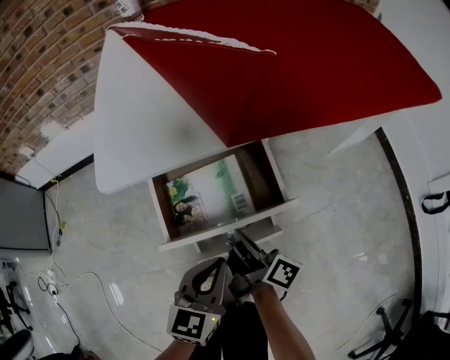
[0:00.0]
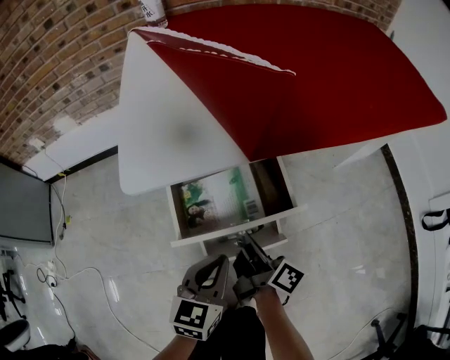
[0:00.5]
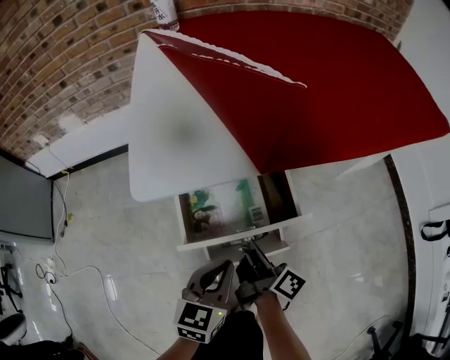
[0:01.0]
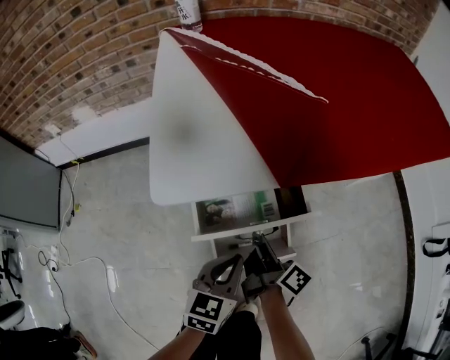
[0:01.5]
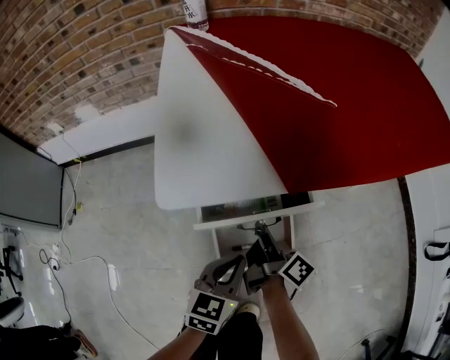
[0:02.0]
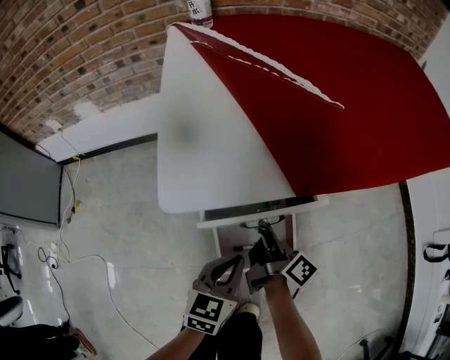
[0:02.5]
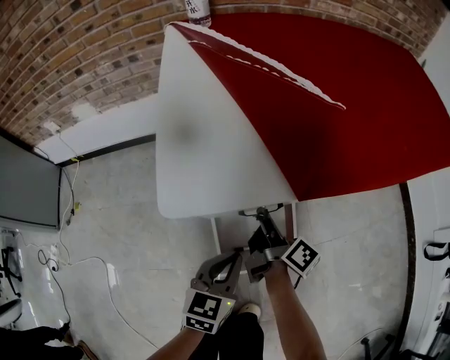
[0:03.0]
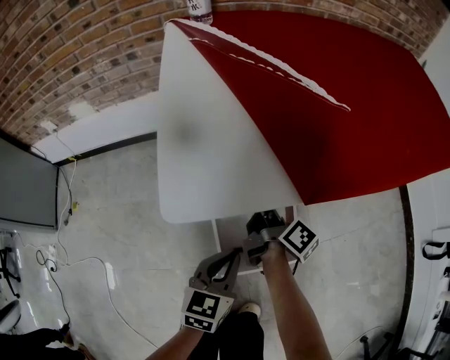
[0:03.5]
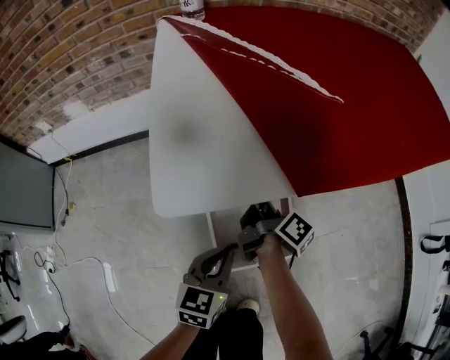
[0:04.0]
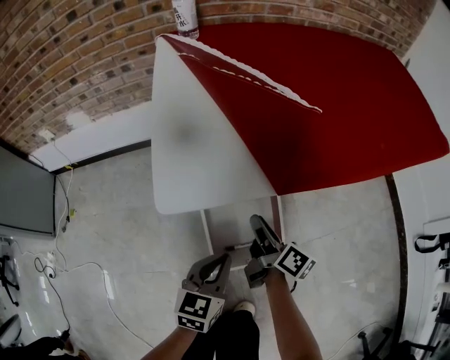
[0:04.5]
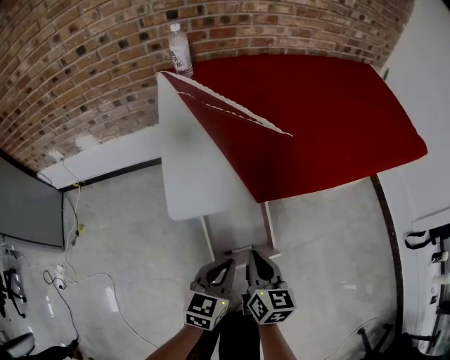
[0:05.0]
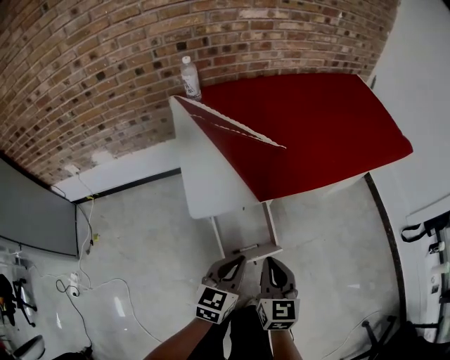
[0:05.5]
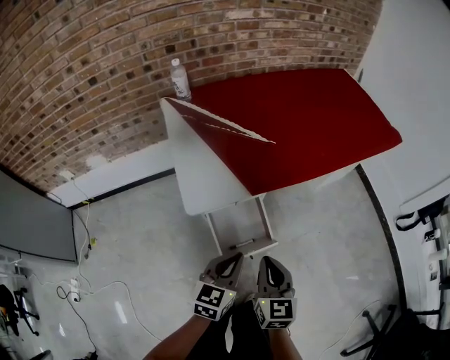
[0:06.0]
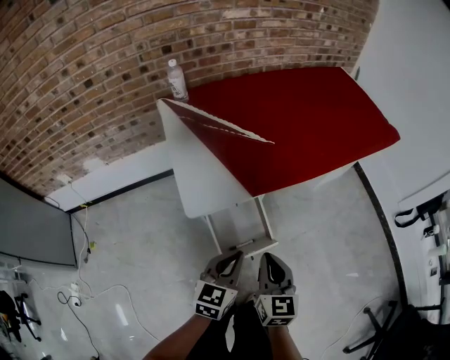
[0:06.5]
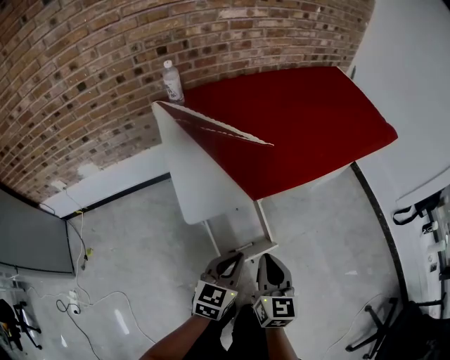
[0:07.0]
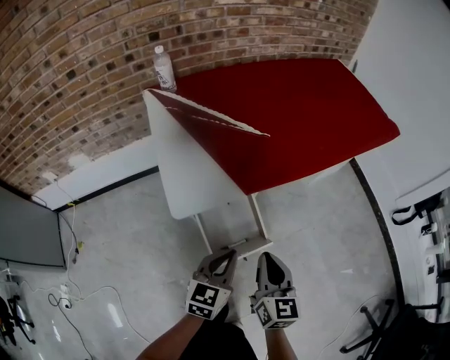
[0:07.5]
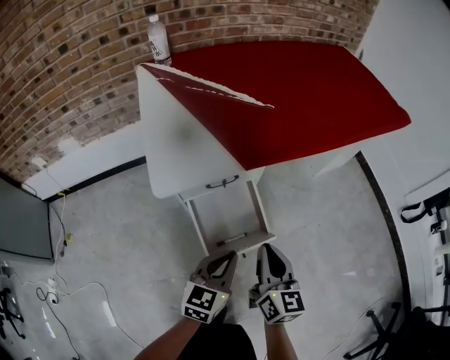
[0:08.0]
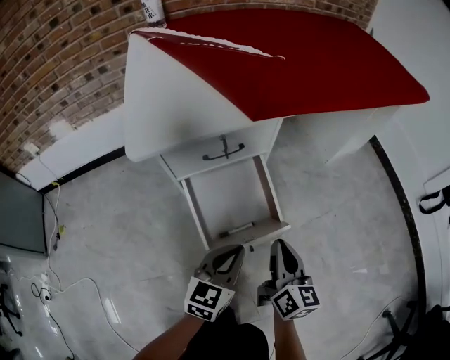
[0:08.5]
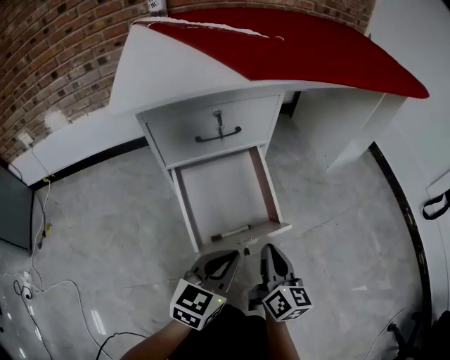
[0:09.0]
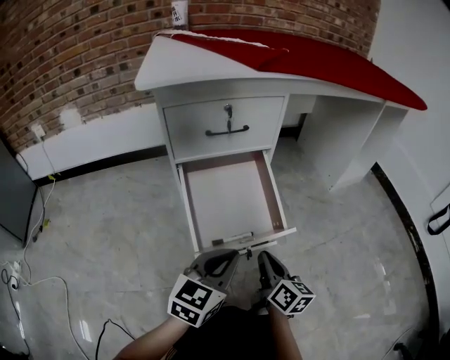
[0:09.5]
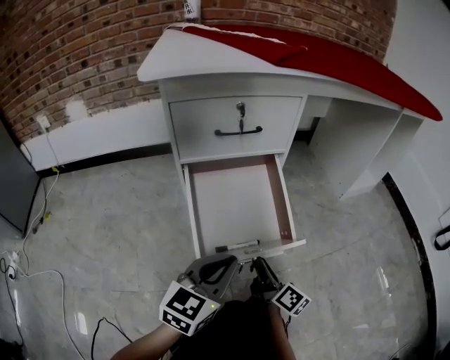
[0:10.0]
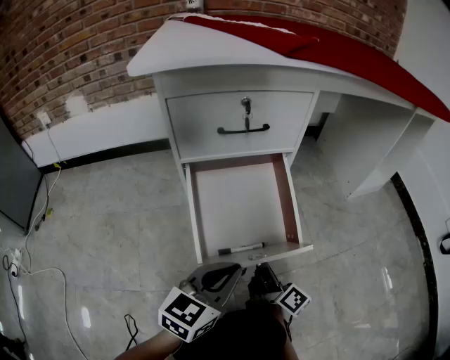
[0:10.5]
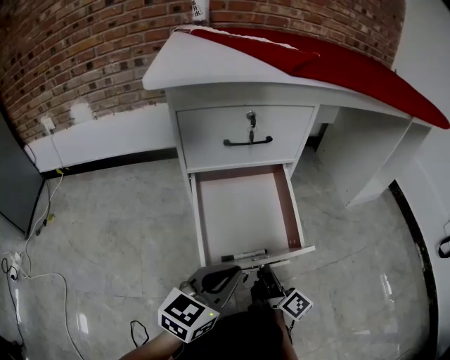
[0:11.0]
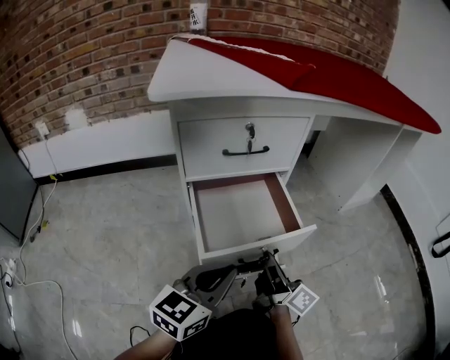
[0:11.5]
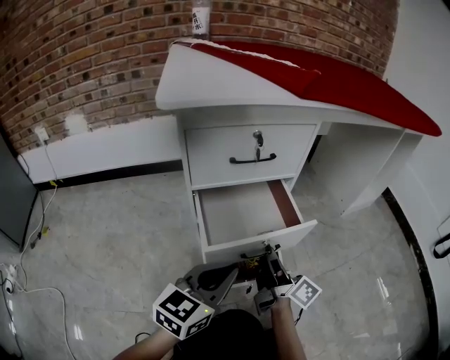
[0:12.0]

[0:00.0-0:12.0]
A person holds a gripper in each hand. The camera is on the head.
0:00.0 to 0:02.0: The left gripper ends up roughly 5 cm from where it was. The right gripper shifts about 5 cm forward.
0:02.0 to 0:04.0: The right gripper travels forward by about 10 cm.
0:04.0 to 0:06.0: The left gripper is displaced upward by some 25 cm. The right gripper moves upward and backward, about 35 cm, rolls counterclockwise, seen from behind, by some 70 degrees, and opens, then closes once more.
0:06.0 to 0:08.0: The grippers both shift downward by roughly 15 cm.
0:08.0 to 0:10.0: The left gripper goes roughly 25 cm downward; the right gripper goes some 40 cm downward, changes its angle by roughly 40 degrees, and opens.
0:10.0 to 0:12.0: The right gripper moves upward and forward, approximately 10 cm. The left gripper ends up some 5 cm from where it was.

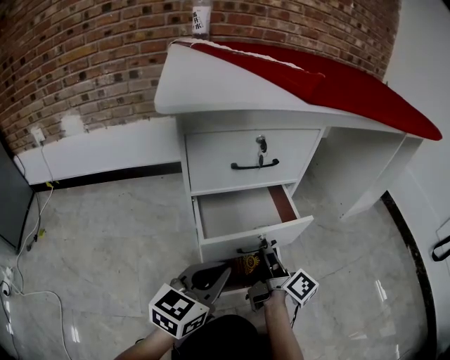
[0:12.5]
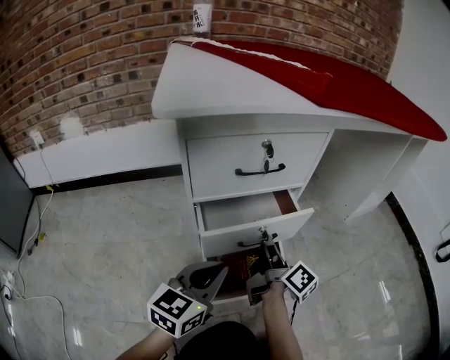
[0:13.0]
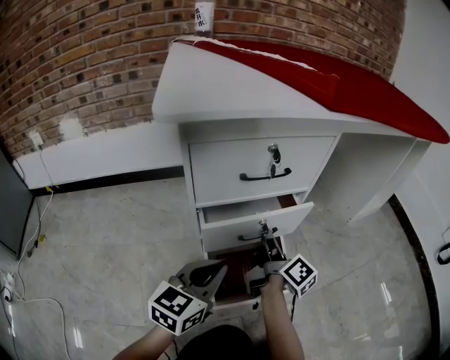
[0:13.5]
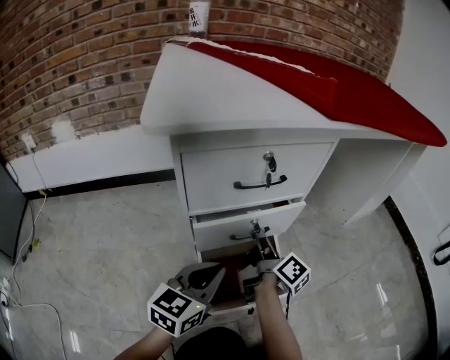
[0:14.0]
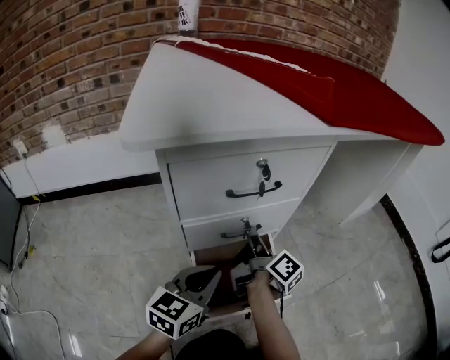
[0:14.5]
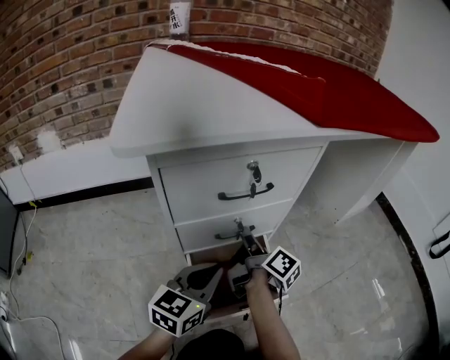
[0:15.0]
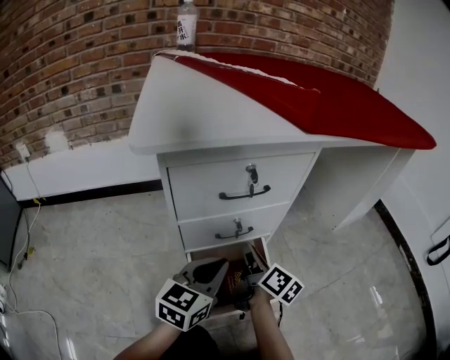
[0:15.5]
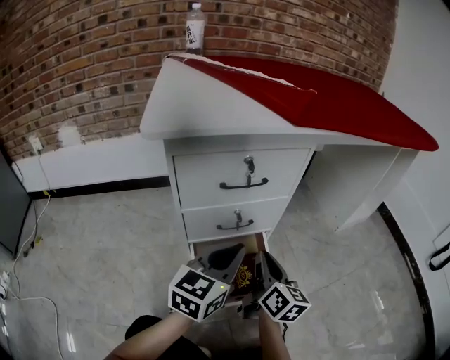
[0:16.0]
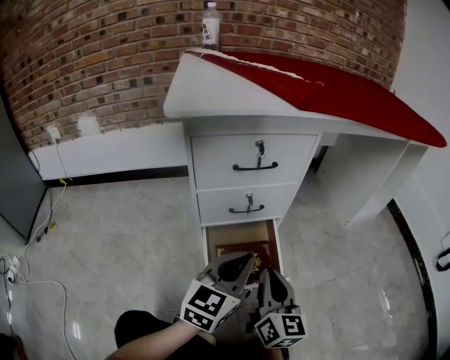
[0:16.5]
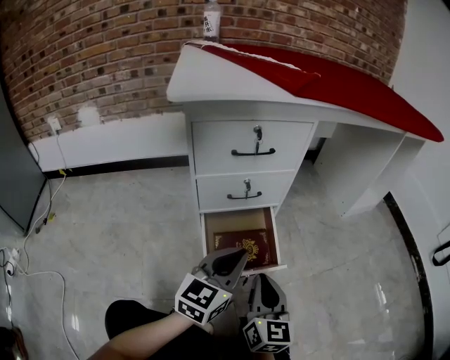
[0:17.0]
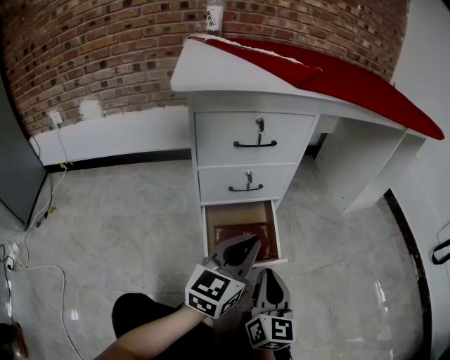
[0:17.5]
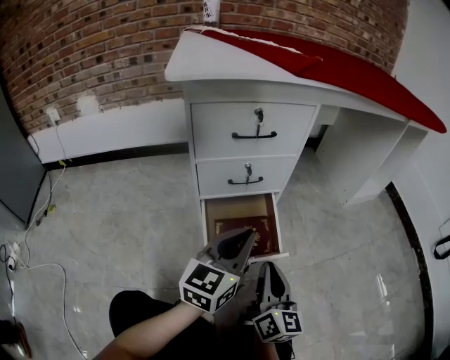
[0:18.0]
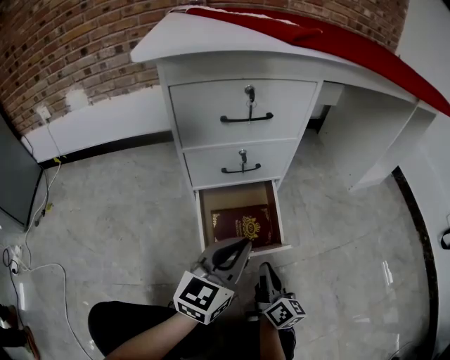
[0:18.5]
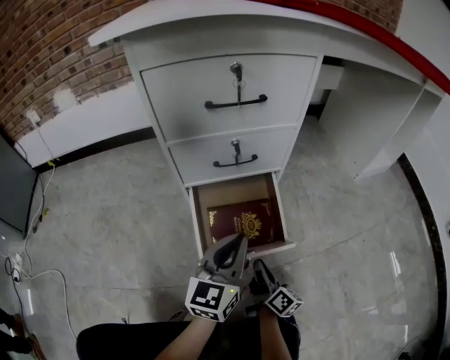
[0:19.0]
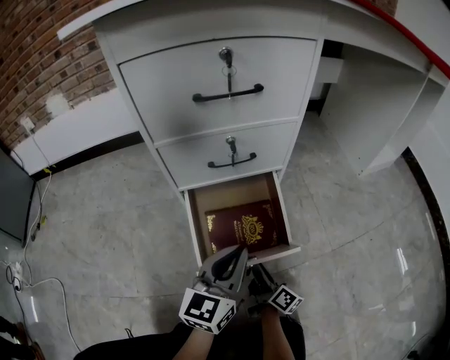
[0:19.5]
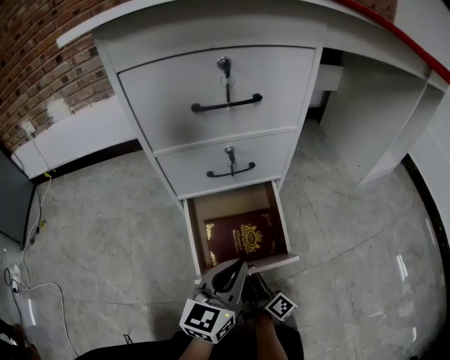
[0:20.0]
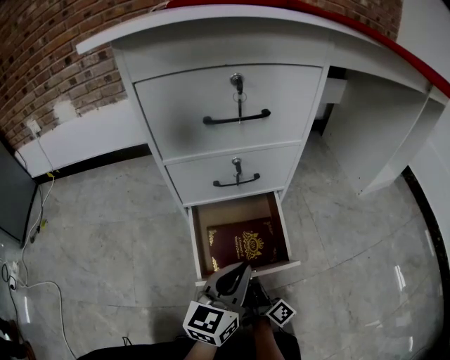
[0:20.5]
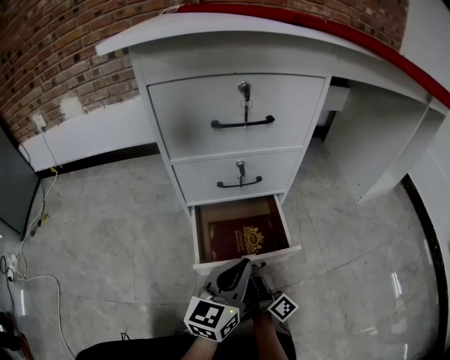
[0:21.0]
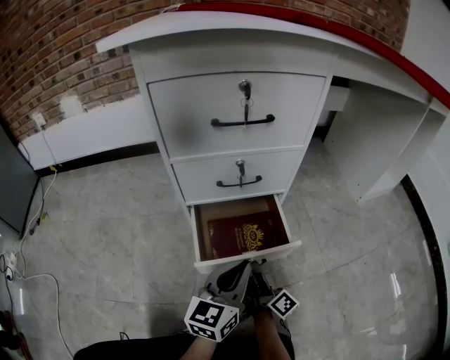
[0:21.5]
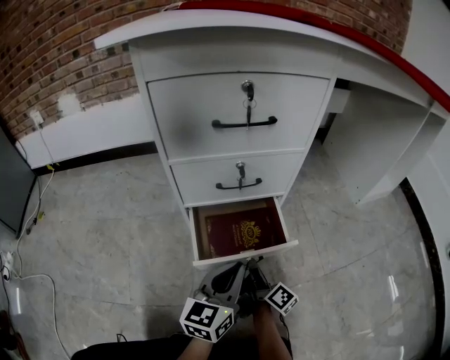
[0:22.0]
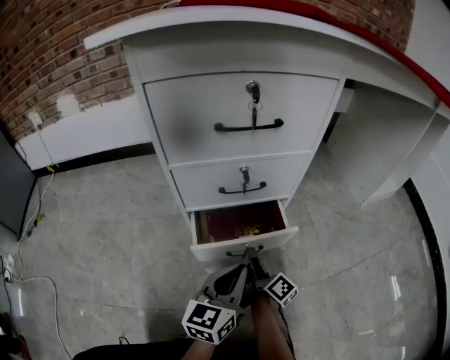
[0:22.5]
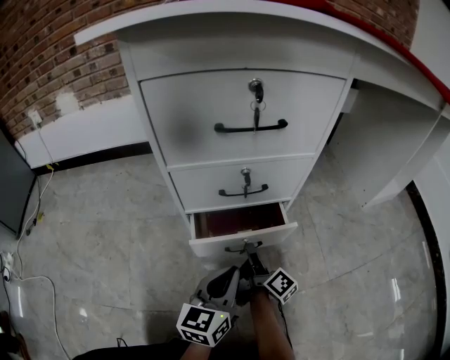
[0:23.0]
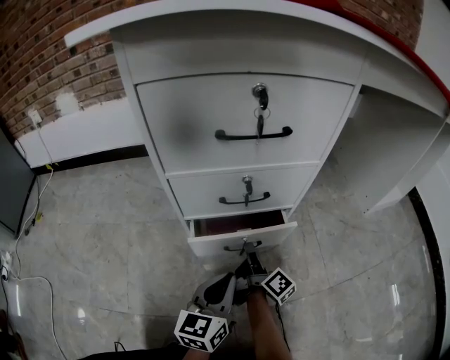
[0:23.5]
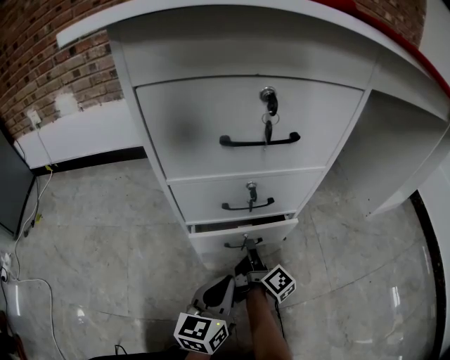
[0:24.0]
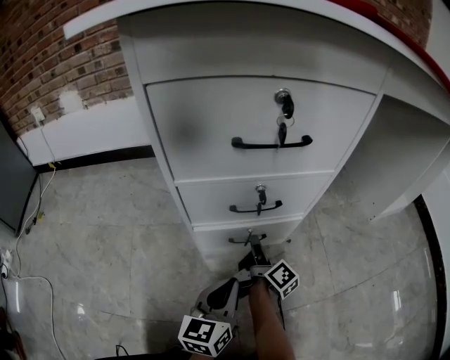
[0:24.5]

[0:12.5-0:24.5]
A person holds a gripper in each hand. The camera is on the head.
0:12.5 to 0:14.5: The right gripper shifts some 15 cm forward and to the left. The left gripper shifts about 10 cm forward.
0:14.5 to 0:16.5: The left gripper shifts approximately 10 cm to the right, upward and backward; the right gripper travels backward by about 20 cm, and rotates around the line of its fingers by roughly 60 degrees, counterclockwise from behind.
0:16.5 to 0:18.5: The right gripper is displaced downward by approximately 15 cm, and swivels roughly 30 degrees; the left gripper ends up about 5 cm from where it was.
0:18.5 to 0:20.5: Both grippers travel together downward, some 10 cm. The right gripper swivels about 30 degrees.
0:20.5 to 0:22.5: The right gripper travels forward by approximately 10 cm.
0:22.5 to 0:24.5: The left gripper moves some 5 cm; the right gripper is displaced forward by some 10 cm.

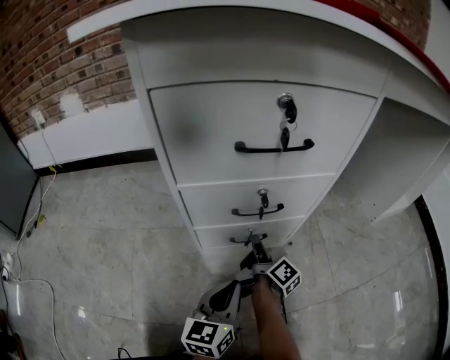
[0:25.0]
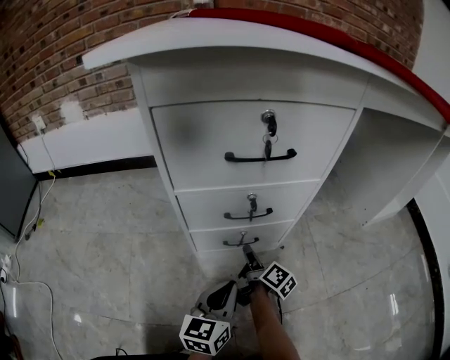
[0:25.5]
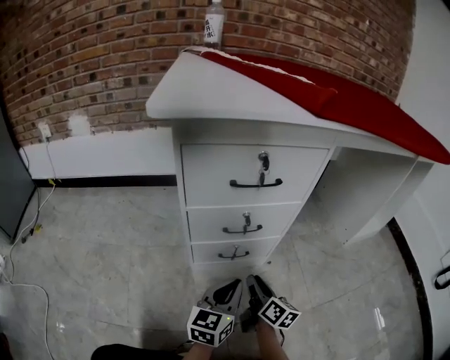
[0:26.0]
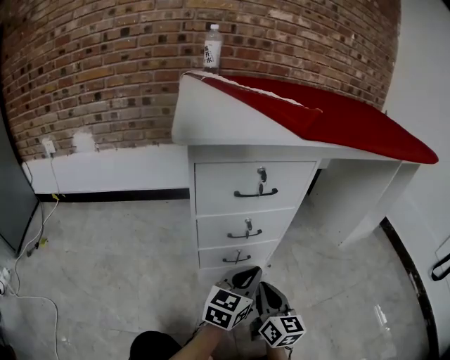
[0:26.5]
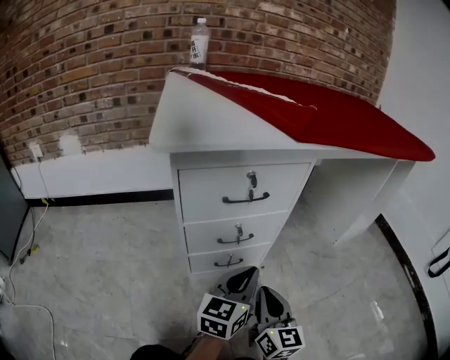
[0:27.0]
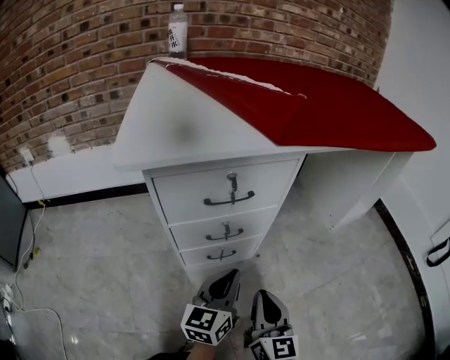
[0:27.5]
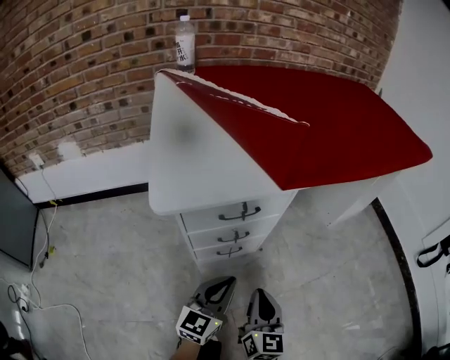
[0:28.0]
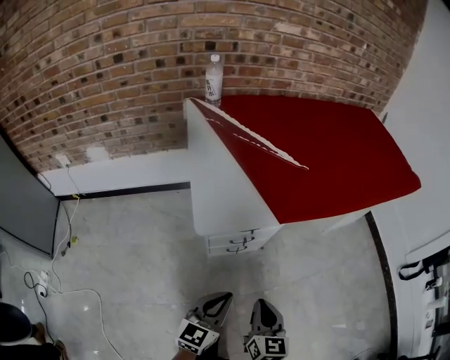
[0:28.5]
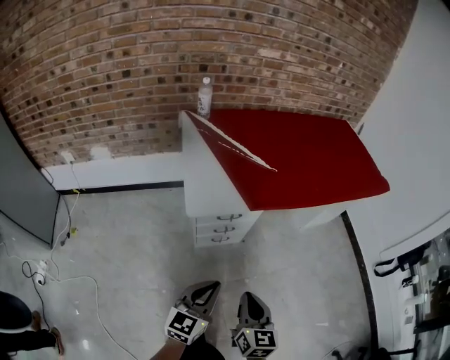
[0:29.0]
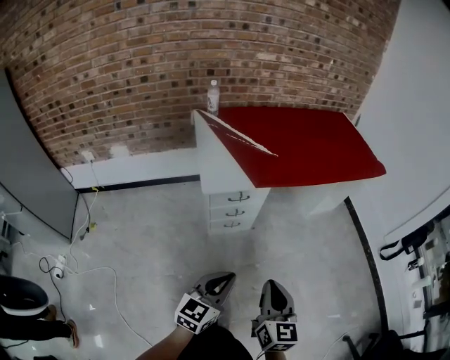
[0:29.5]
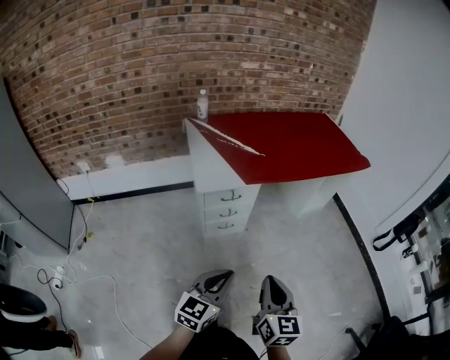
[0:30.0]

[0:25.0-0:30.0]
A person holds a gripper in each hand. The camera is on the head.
0:25.0 to 0:27.5: The left gripper travels upward by about 20 cm. The right gripper heads upward and backward, covering approximately 30 cm, rotates around the line of its fingers by some 60 degrees, counterclockwise from behind, and opens and closes again.
0:27.5 to 0:30.0: The two grippers go approximately 60 cm upward and backward.
